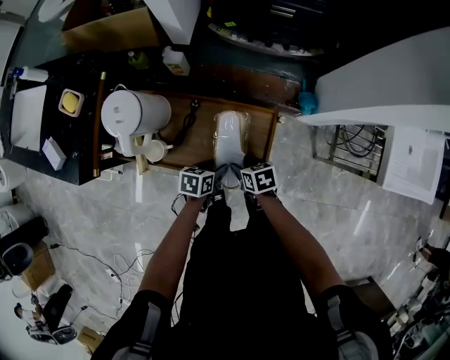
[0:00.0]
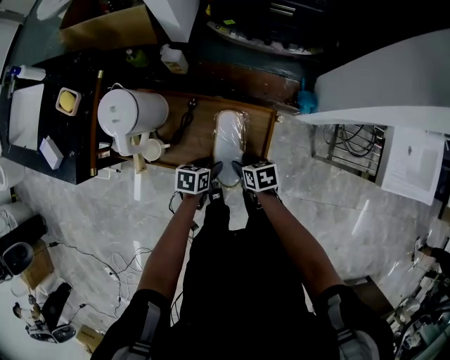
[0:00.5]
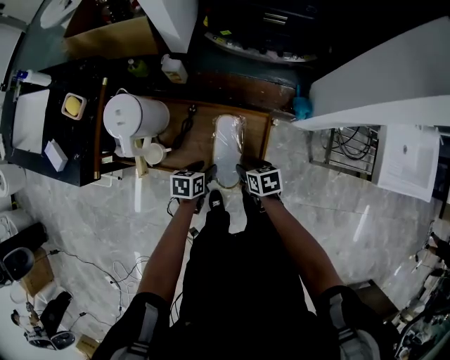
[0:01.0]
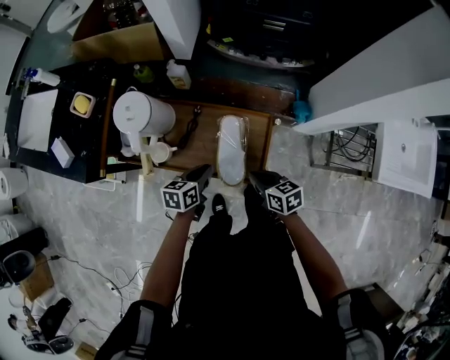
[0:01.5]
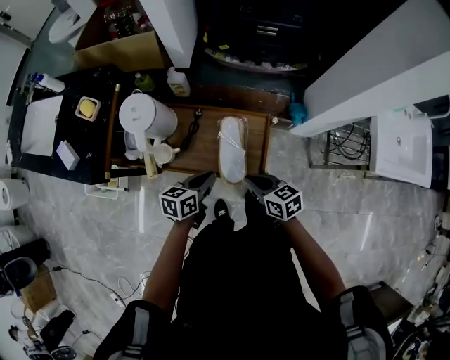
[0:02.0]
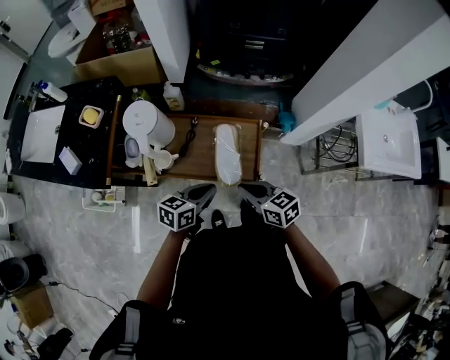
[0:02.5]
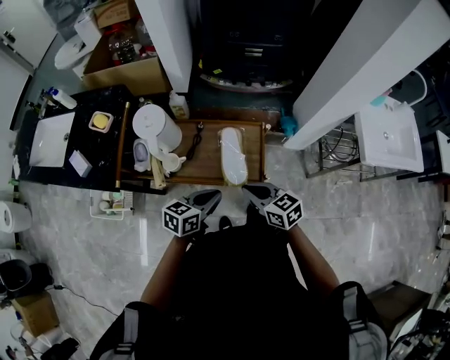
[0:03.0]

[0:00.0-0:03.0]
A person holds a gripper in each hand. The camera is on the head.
0:00.0 to 0:01.5: Both grippers travel together upward, approximately 10 cm. The right gripper closes its fingers, while the left gripper closes up.
0:01.5 to 0:03.0: The right gripper heads upward, backward and to the left, covering approximately 15 cm. The left gripper goes approximately 15 cm upward and backward, and swivels approximately 20 degrees.

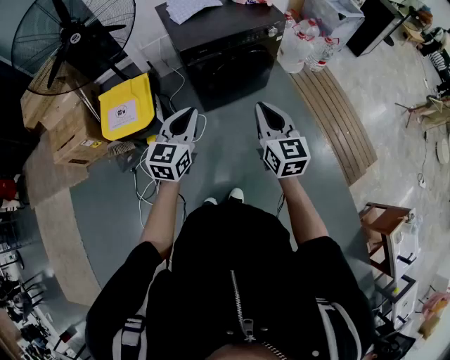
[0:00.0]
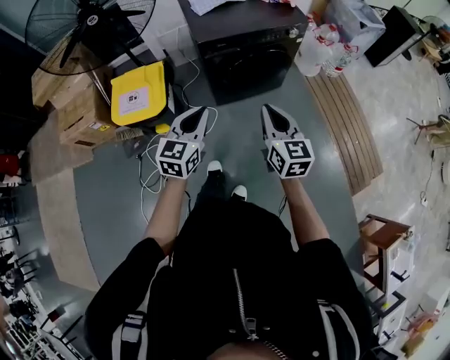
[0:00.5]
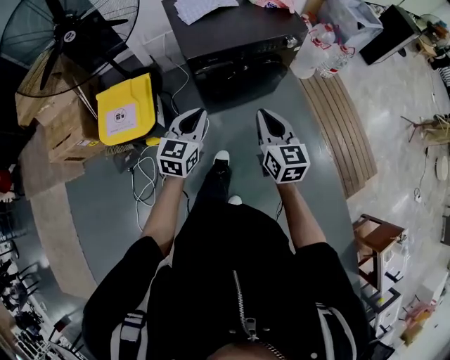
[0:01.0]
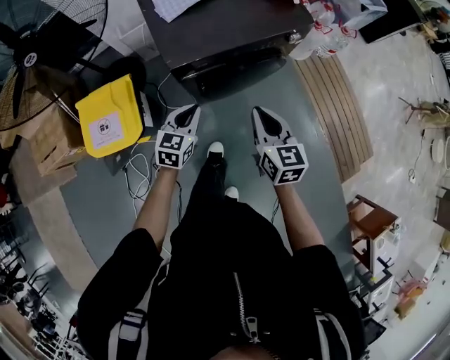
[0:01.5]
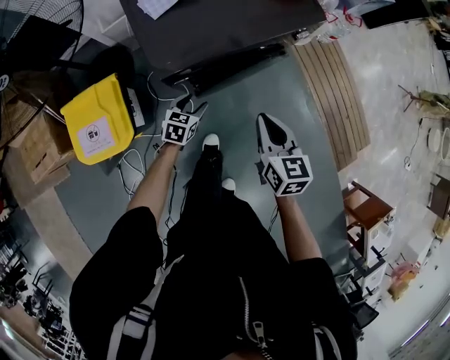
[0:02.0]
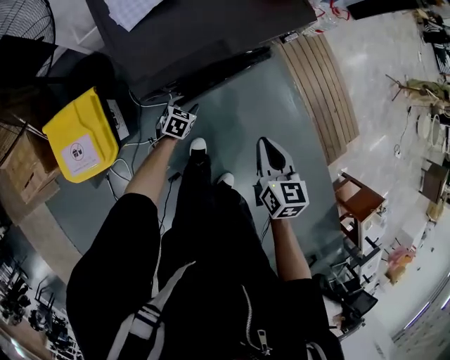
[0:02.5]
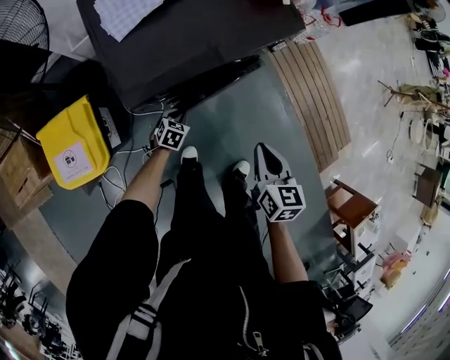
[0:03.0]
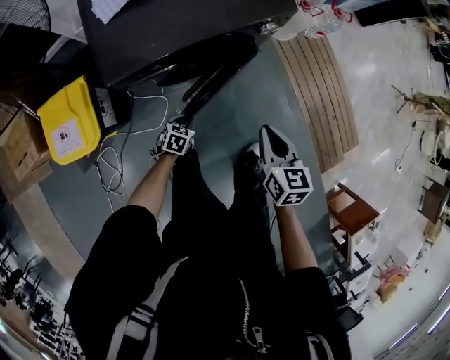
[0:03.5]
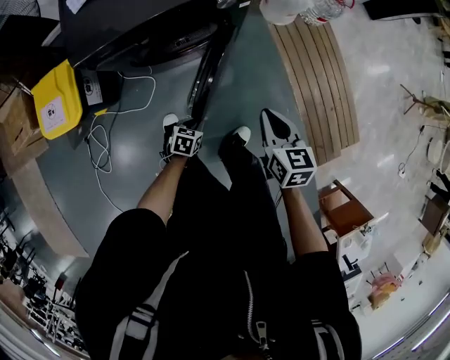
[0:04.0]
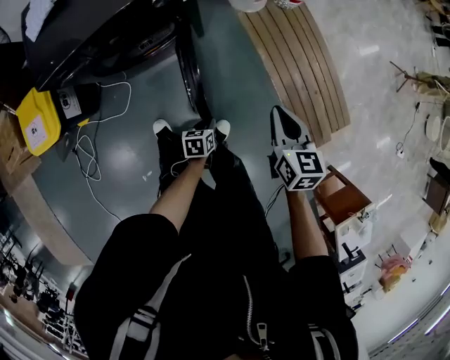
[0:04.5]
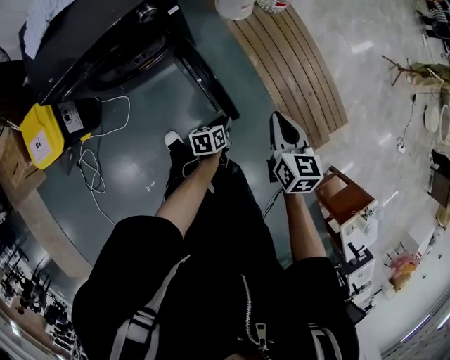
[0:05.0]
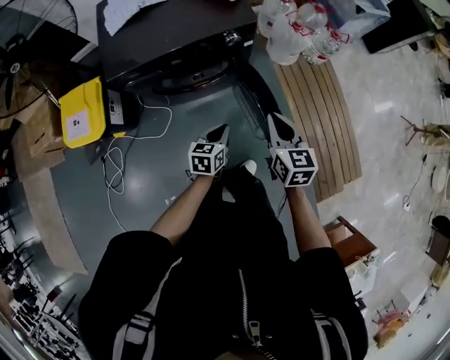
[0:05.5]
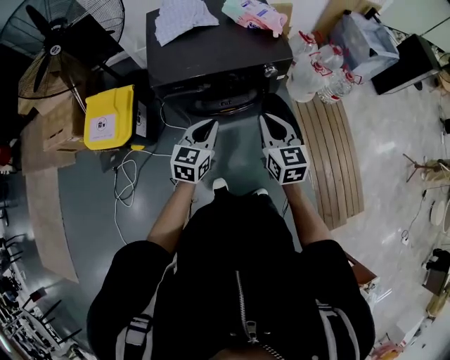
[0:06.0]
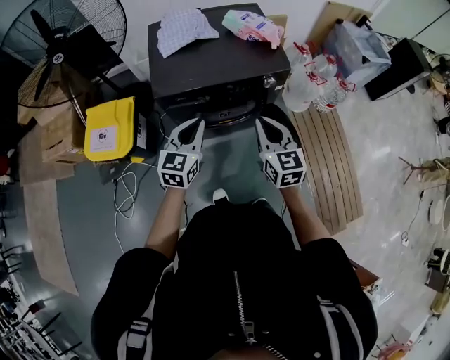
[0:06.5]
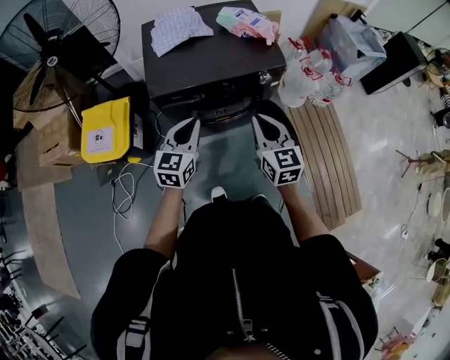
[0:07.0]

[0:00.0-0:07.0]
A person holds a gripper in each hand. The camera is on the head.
0:00.0 to 0:02.0: The two grippers go some 40 cm forward and downward. The right gripper changes its angle by roughly 20 degrees. The left gripper points its fingers approximately 30 degrees further downward, and opens up.
0:02.0 to 0:03.5: The left gripper travels to the right and downward by some 20 cm, and closes up; the right gripper moves to the right, about 15 cm.
0:03.5 to 0:05.0: The two grippers go approximately 40 cm to the right. The left gripper turns by about 40 degrees.
0:05.0 to 0:07.0: The left gripper moves some 60 cm, and points its fingers some 30 degrees further upward, while the right gripper moves approximately 40 cm, and turns by approximately 40 degrees.

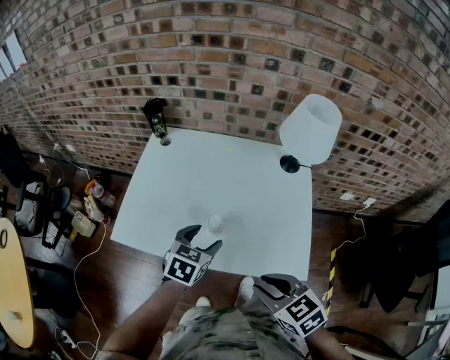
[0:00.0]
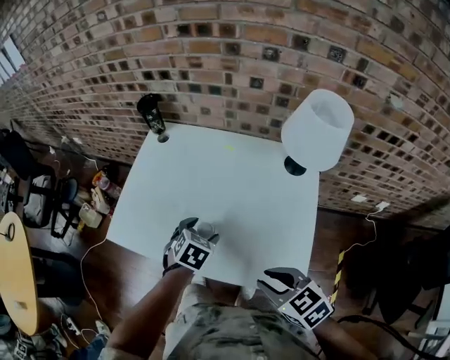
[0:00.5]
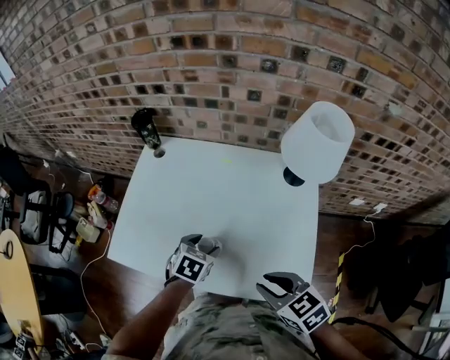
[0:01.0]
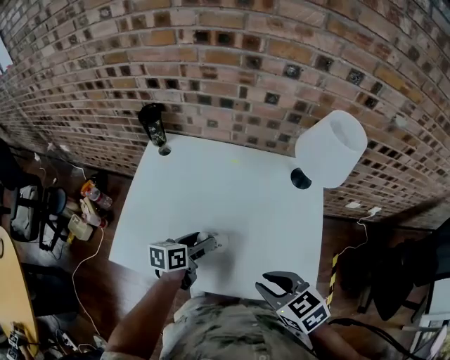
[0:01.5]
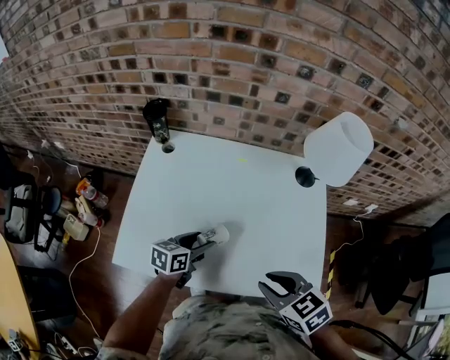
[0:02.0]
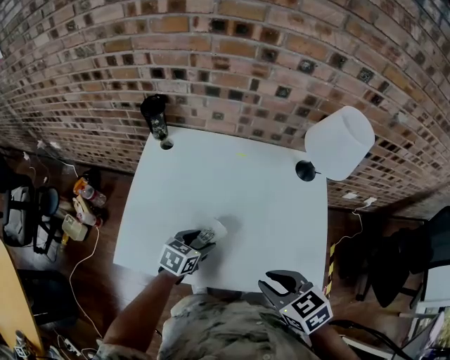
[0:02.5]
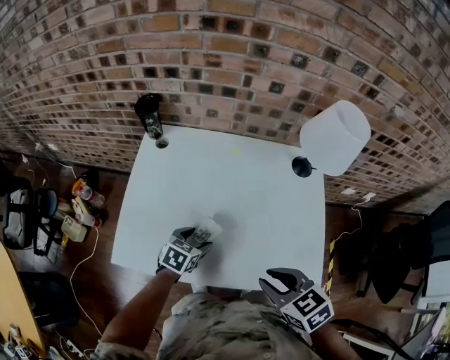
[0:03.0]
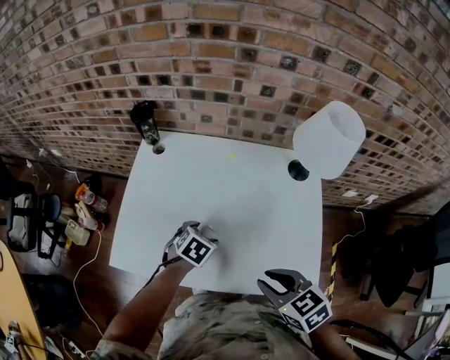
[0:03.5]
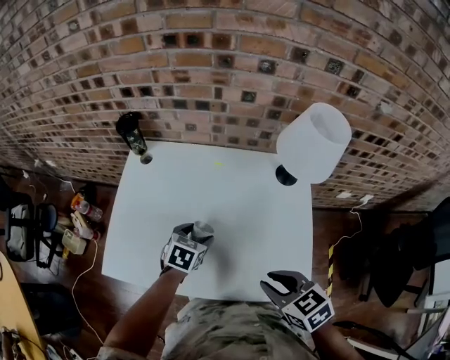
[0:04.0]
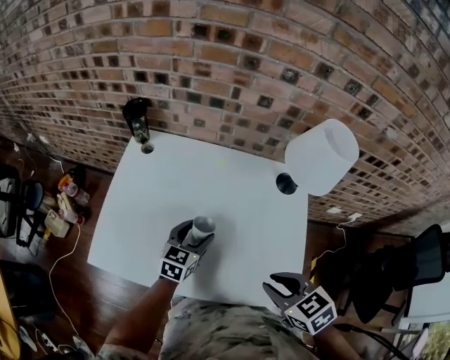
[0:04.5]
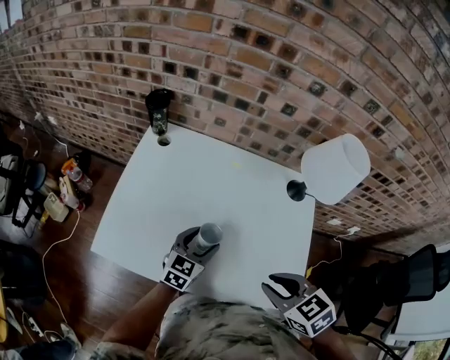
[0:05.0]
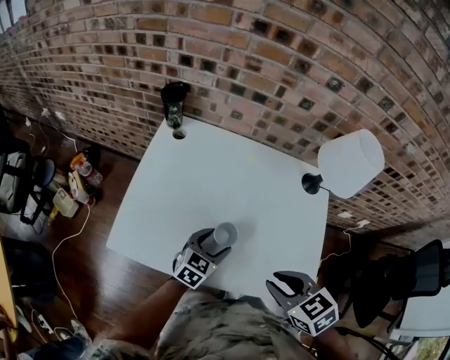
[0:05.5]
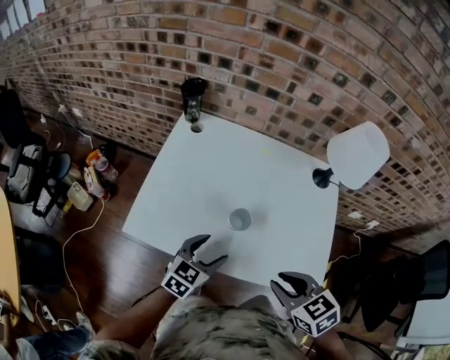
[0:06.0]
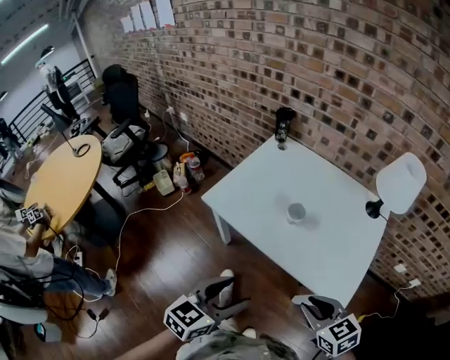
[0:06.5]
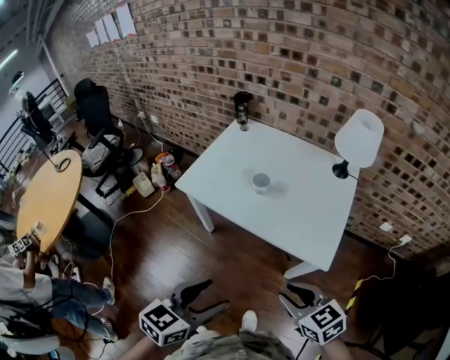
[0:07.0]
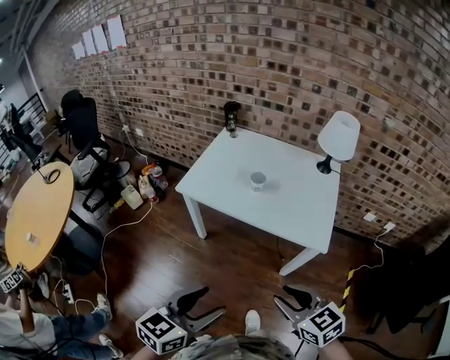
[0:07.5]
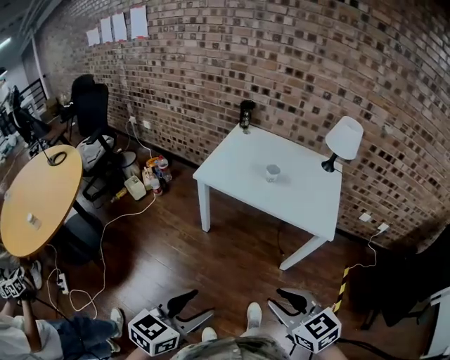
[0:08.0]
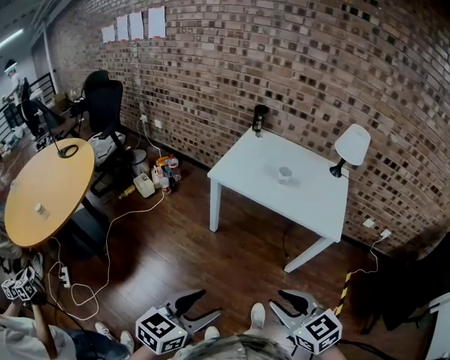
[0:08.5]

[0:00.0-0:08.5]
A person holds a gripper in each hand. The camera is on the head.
0:00.0 to 0:02.0: The right gripper heads forward, covering about 10 cm, while the left gripper is displaced forward and downward by roughly 15 cm, and changes its angle by roughly 30 degrees.
0:02.0 to 0:04.0: Both grippers travel together to the right, roughly 5 cm. The left gripper turns by some 30 degrees.
0:04.0 to 0:06.5: The left gripper shifts approximately 40 cm backward and upward, and tips its fingers upward by about 30 degrees. The right gripper moves backward, roughly 20 cm, and swivels some 20 degrees.
0:06.5 to 0:08.5: The two grippers go approximately 40 cm backward and to the left.

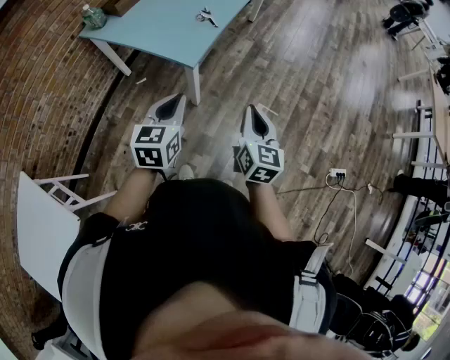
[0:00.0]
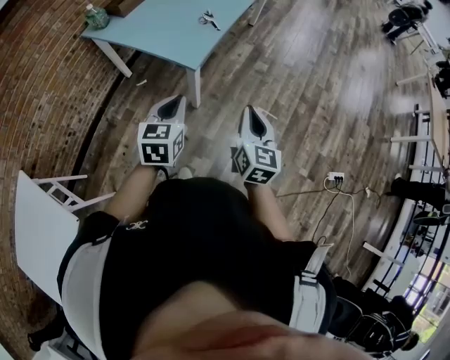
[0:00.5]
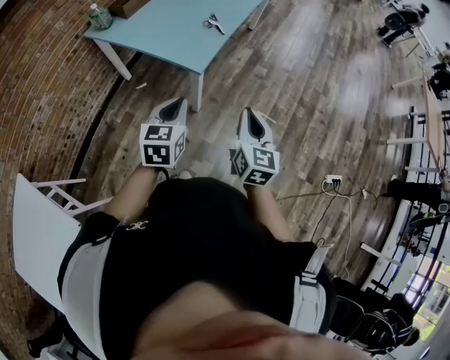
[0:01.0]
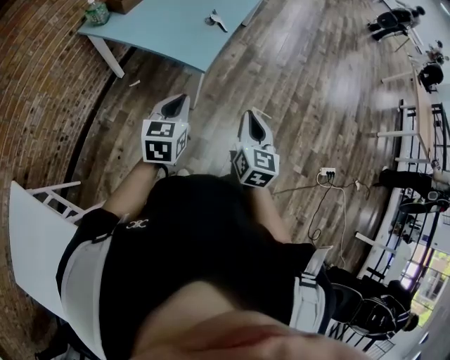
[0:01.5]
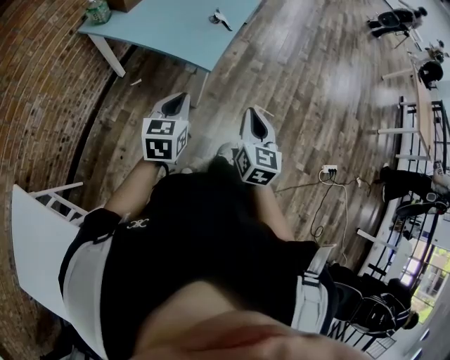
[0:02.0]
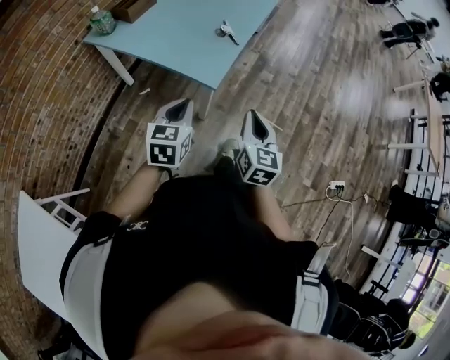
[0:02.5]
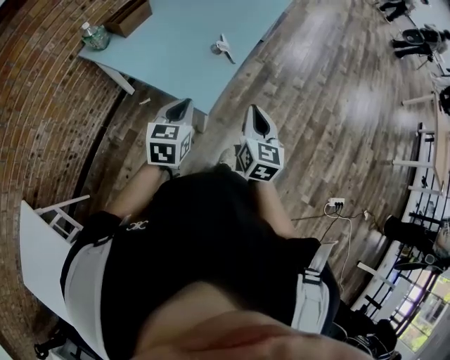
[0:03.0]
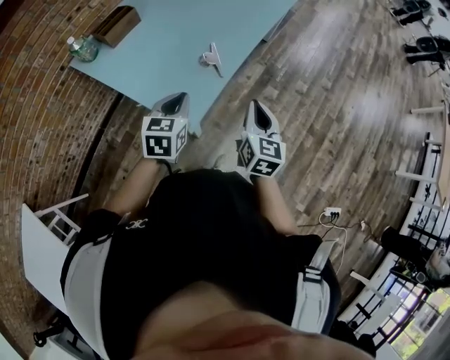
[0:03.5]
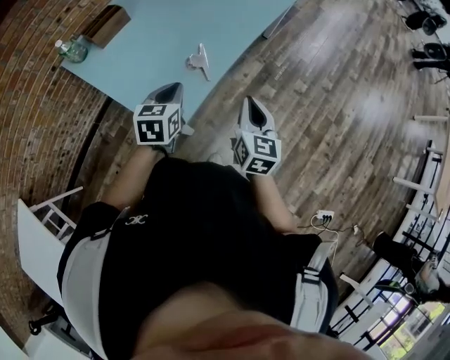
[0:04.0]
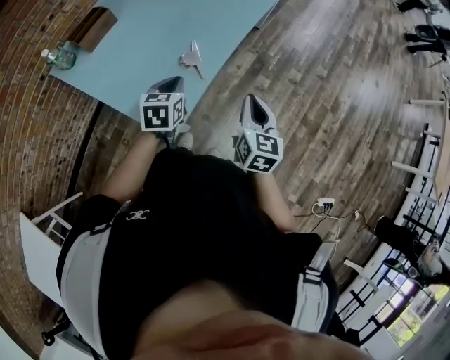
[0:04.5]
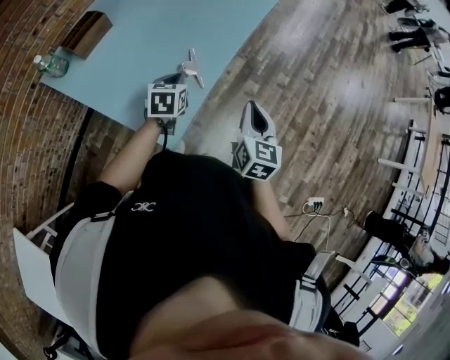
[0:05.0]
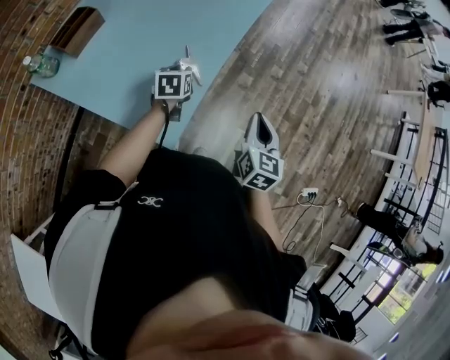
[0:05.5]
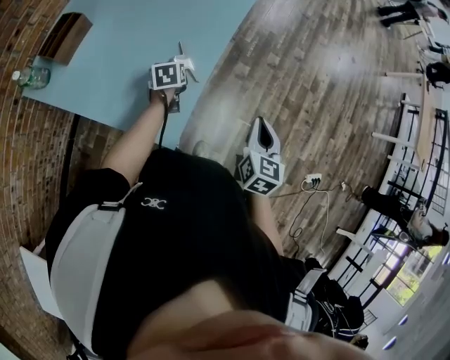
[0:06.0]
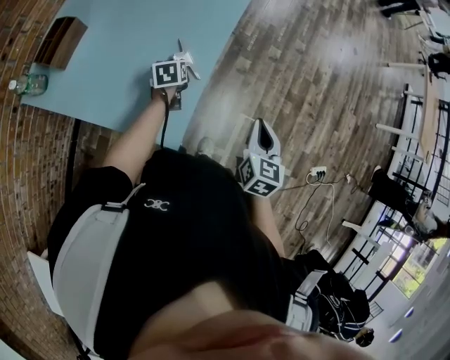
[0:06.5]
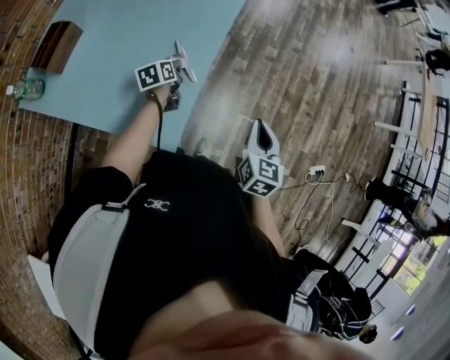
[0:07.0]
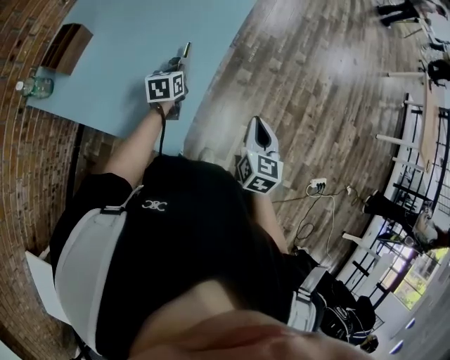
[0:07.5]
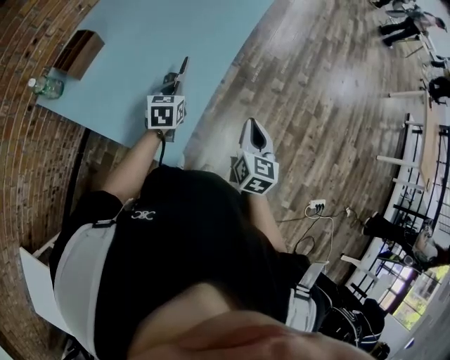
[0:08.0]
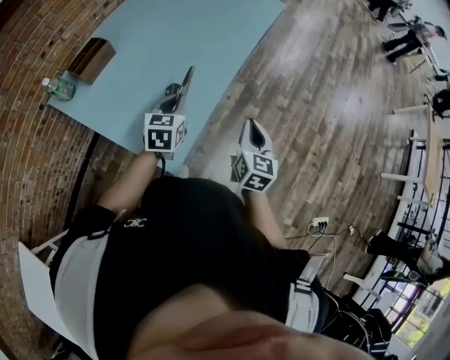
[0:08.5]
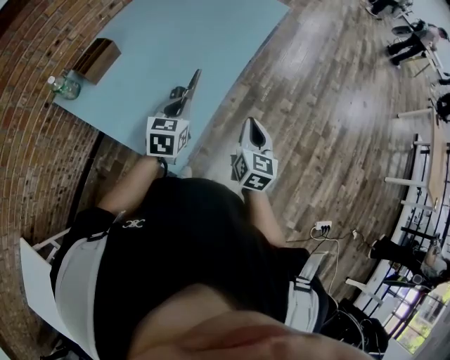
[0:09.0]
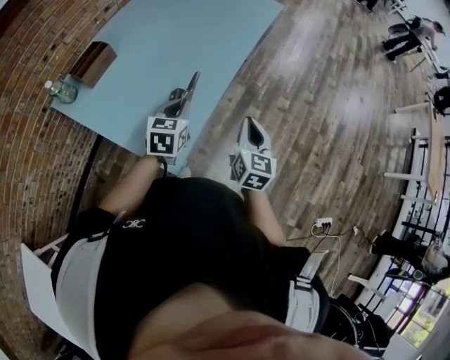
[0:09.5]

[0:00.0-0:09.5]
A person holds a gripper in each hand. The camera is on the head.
0:00.0 to 0:02.0: The grippers both shift to the left by approximately 10 cm.
0:02.0 to 0:04.0: The two grippers go approximately 35 cm forward.
0:04.0 to 0:05.5: The left gripper shifts approximately 20 cm downward and forward, and opens up.
0:05.5 to 0:07.5: The left gripper closes up.
0:07.5 to 0:09.5: The right gripper ends up approximately 5 cm from where it was, while the left gripper heads upward and backward, covering roughly 15 cm, and rotates some 20 degrees.
